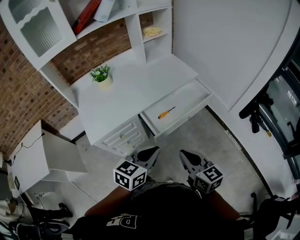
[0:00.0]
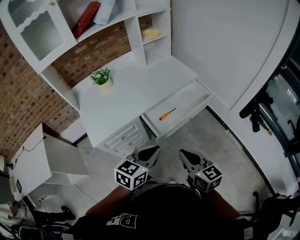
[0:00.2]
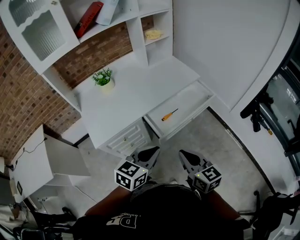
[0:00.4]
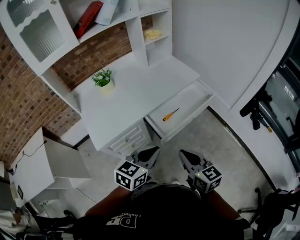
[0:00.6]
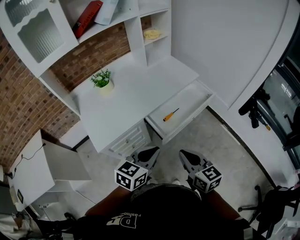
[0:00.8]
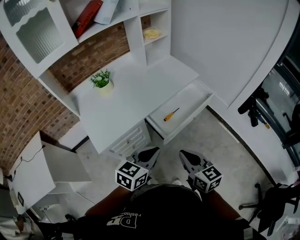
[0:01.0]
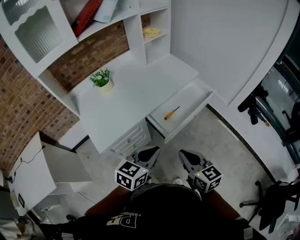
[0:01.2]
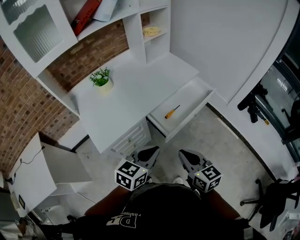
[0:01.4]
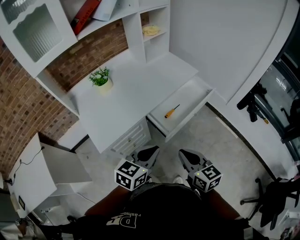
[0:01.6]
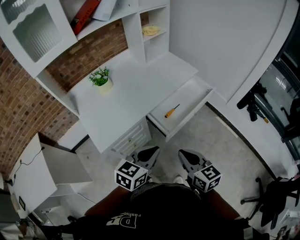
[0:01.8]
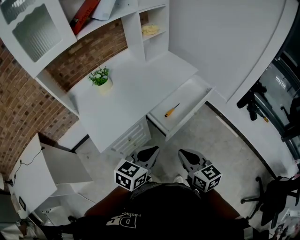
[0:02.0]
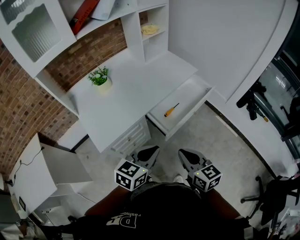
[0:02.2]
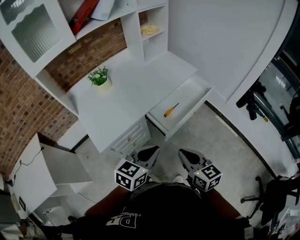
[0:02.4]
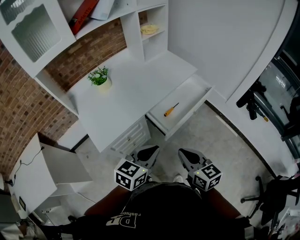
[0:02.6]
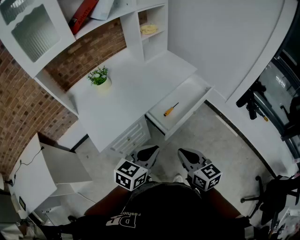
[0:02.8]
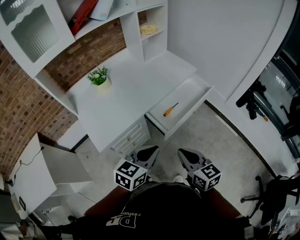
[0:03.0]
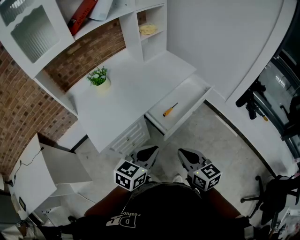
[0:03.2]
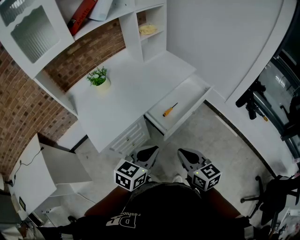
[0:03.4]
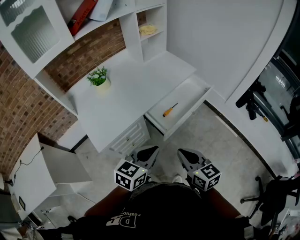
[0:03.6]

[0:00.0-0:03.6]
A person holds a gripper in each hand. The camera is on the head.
0:00.0 to 0:01.8: The grippers both shift to the left by roughly 10 cm.
0:01.8 to 0:03.6: The two grippers keep their place.

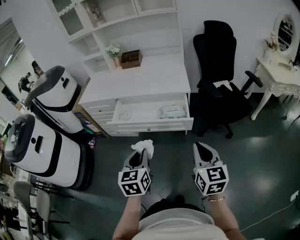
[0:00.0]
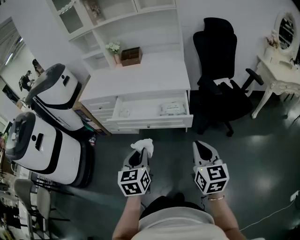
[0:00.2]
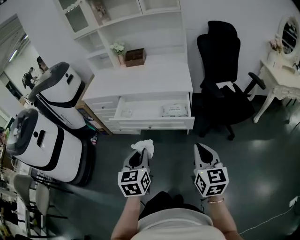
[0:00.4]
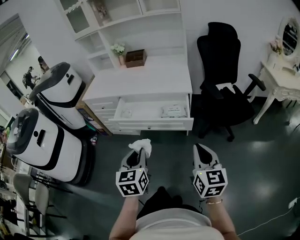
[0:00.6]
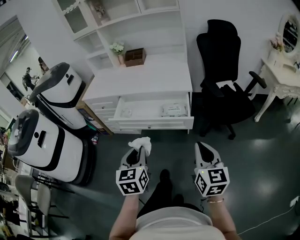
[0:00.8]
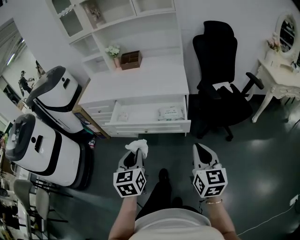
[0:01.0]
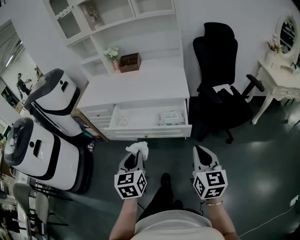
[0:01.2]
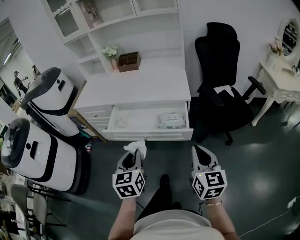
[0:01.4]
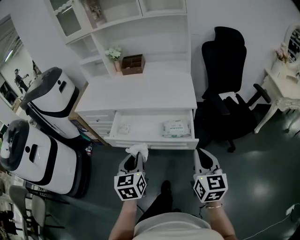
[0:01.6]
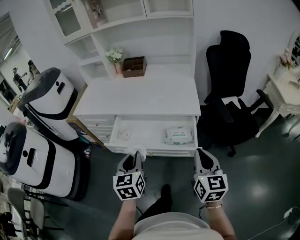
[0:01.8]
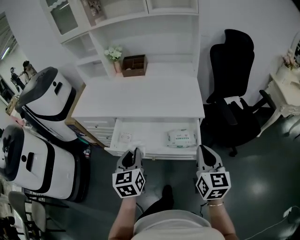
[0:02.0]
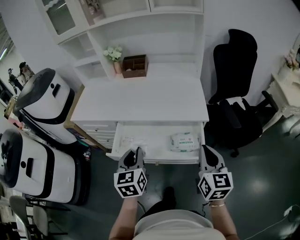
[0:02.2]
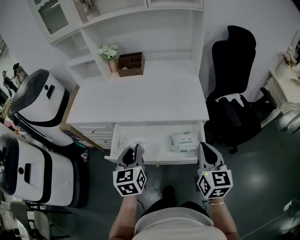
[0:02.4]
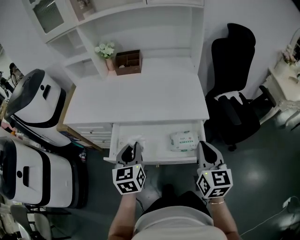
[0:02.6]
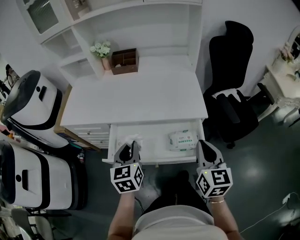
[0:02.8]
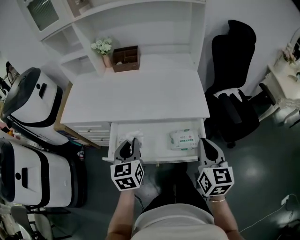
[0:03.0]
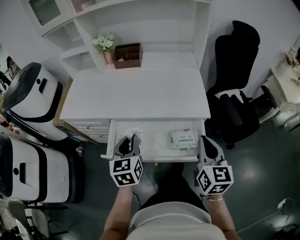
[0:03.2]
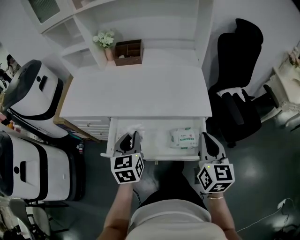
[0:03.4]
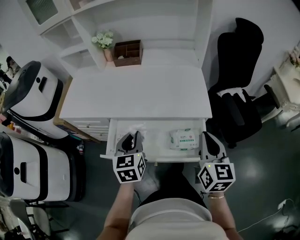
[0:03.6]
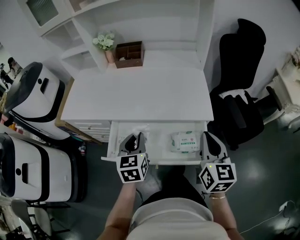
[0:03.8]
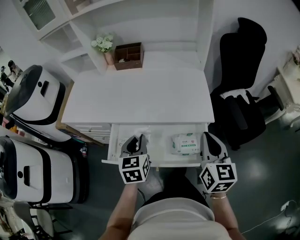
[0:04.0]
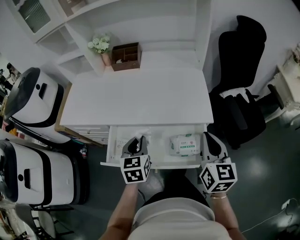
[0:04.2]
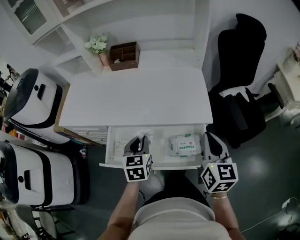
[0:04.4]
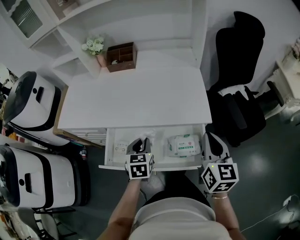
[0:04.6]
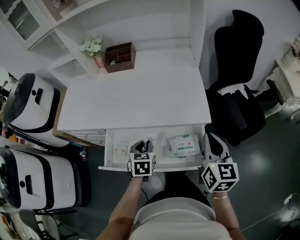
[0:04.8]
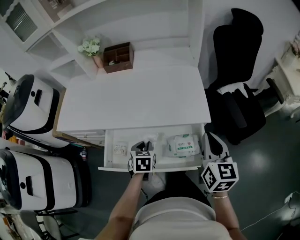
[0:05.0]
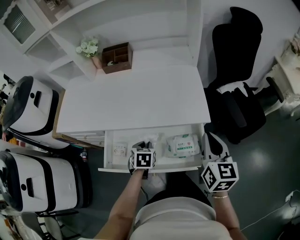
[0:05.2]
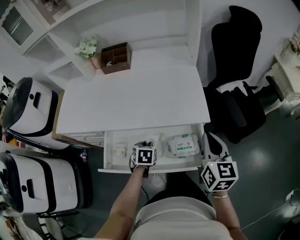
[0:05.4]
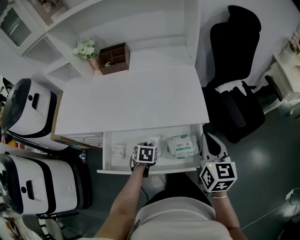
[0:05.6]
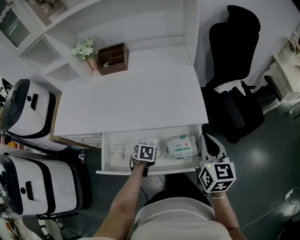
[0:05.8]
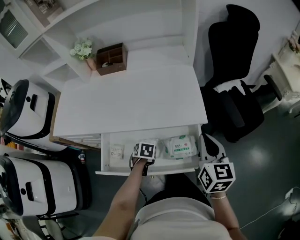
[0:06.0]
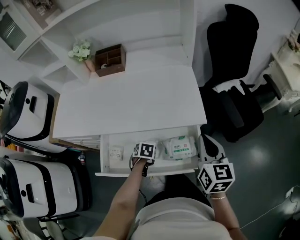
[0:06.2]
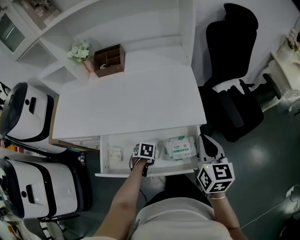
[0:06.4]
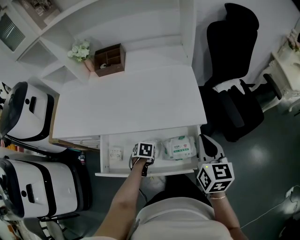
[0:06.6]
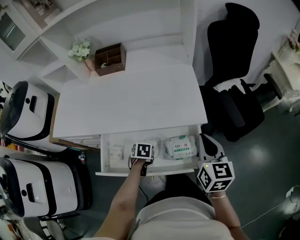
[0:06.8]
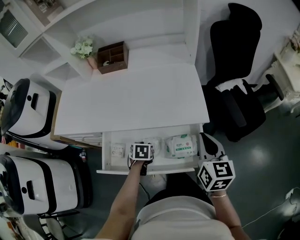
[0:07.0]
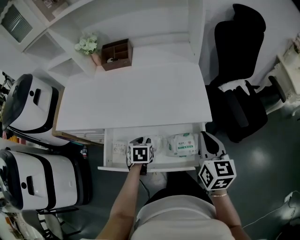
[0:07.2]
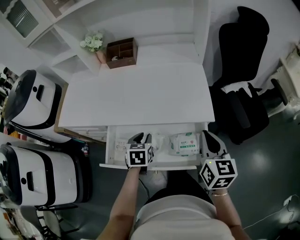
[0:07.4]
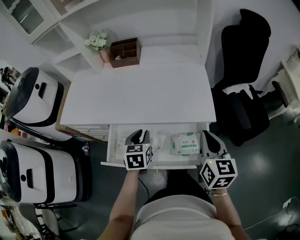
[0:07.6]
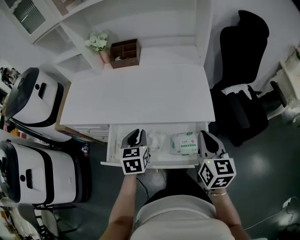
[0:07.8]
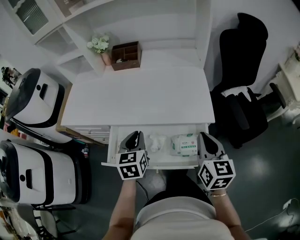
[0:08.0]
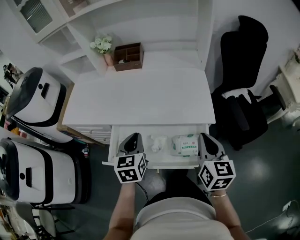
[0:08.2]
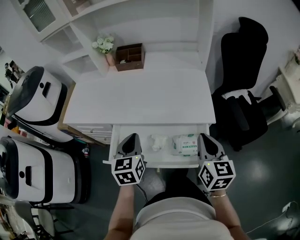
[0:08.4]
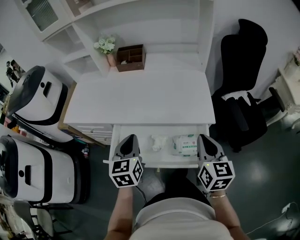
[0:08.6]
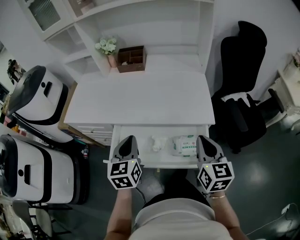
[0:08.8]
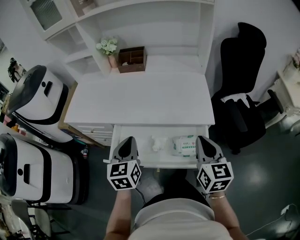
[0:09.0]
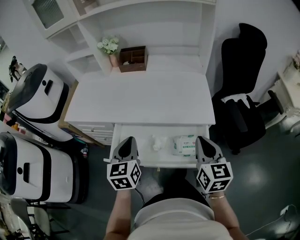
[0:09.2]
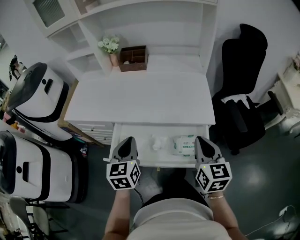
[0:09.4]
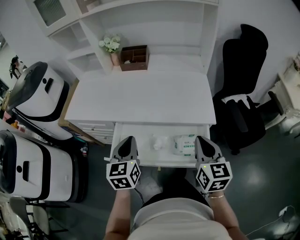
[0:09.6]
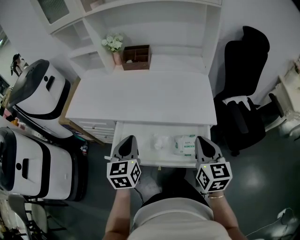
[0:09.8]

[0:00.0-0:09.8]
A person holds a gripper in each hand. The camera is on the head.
0:00.0 to 0:01.4: The grippers both shift forward by about 5 cm.
0:01.4 to 0:02.8: Both grippers travel together forward, about 25 cm.
0:02.8 to 0:04.2: The right gripper heads forward, covering roughly 10 cm. Meanwhile the left gripper is displaced forward and downward by about 10 cm.
0:04.2 to 0:05.6: The left gripper shifts roughly 20 cm downward, and points its fingers about 30 degrees further downward.
0:05.6 to 0:07.0: The grippers make only small movements.
0:07.0 to 0:08.4: The right gripper moves some 5 cm; the left gripper goes roughly 25 cm upward, angles its fingers upward, by about 40 degrees, and closes up.
0:08.4 to 0:09.8: The left gripper shifts by roughly 5 cm.

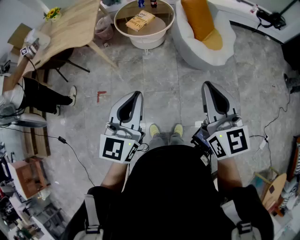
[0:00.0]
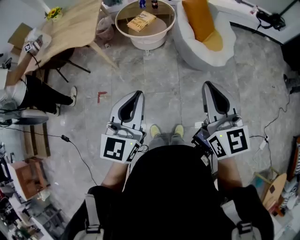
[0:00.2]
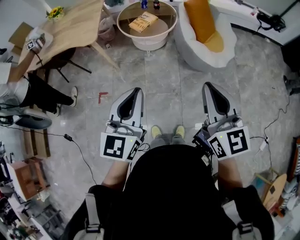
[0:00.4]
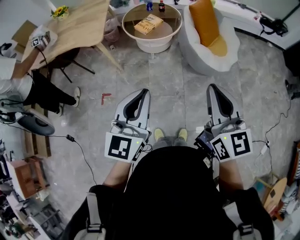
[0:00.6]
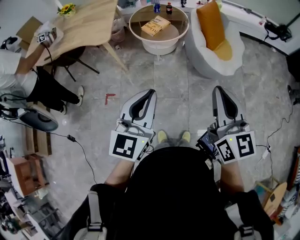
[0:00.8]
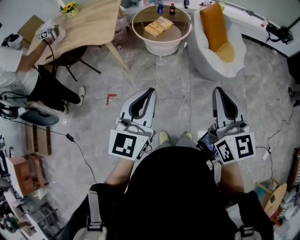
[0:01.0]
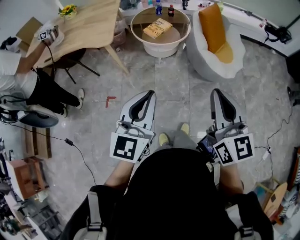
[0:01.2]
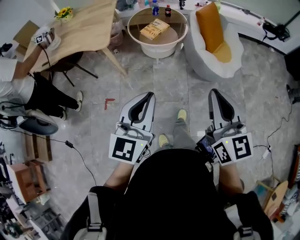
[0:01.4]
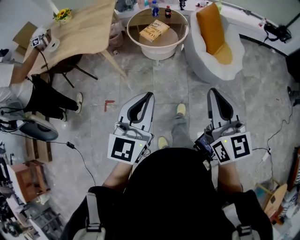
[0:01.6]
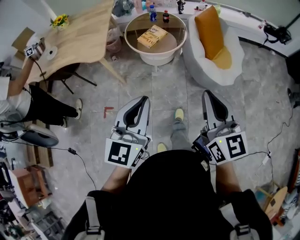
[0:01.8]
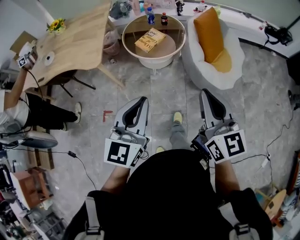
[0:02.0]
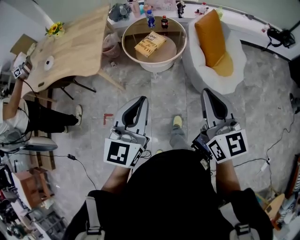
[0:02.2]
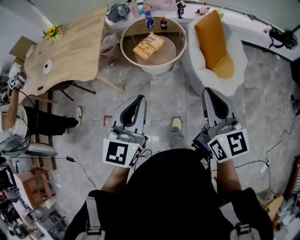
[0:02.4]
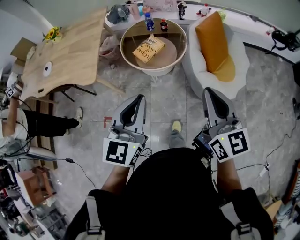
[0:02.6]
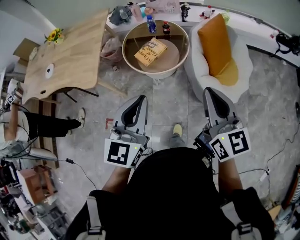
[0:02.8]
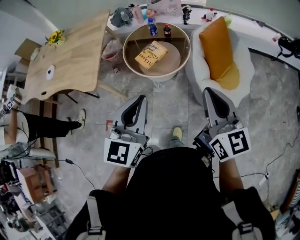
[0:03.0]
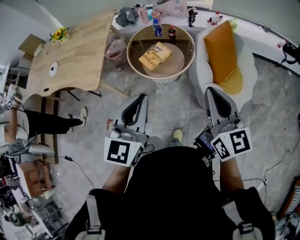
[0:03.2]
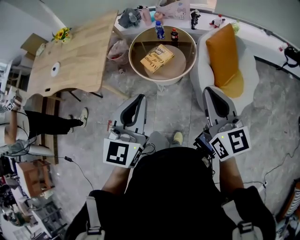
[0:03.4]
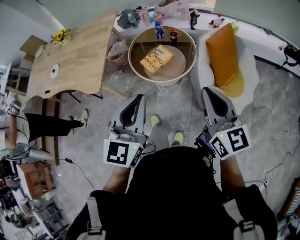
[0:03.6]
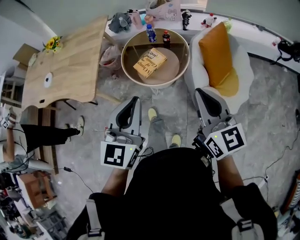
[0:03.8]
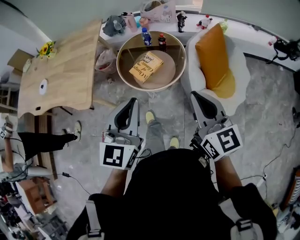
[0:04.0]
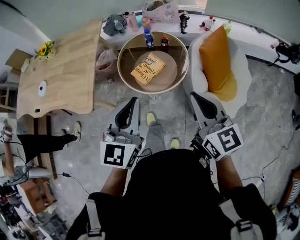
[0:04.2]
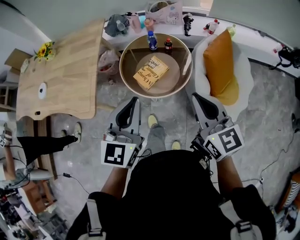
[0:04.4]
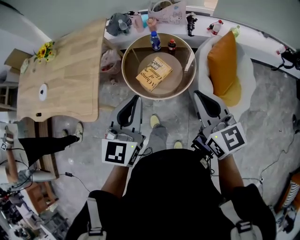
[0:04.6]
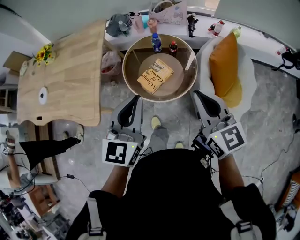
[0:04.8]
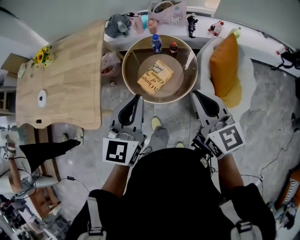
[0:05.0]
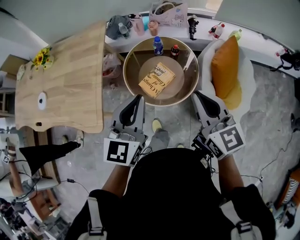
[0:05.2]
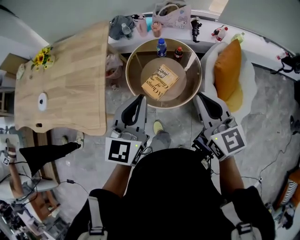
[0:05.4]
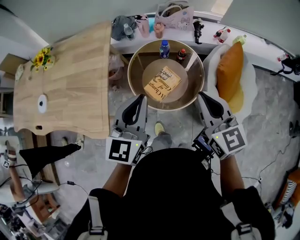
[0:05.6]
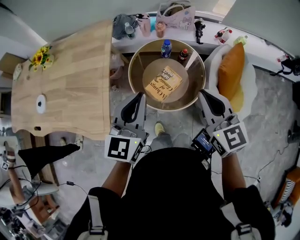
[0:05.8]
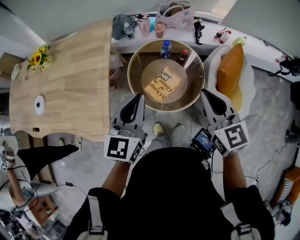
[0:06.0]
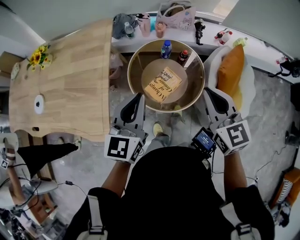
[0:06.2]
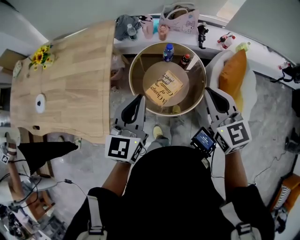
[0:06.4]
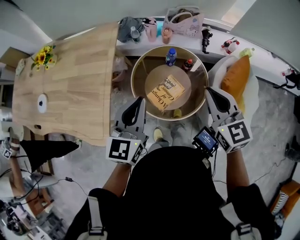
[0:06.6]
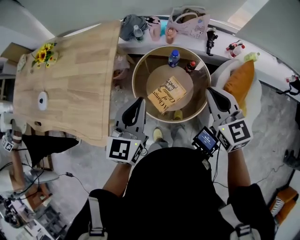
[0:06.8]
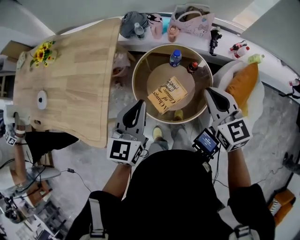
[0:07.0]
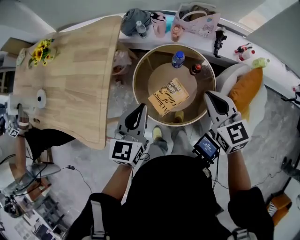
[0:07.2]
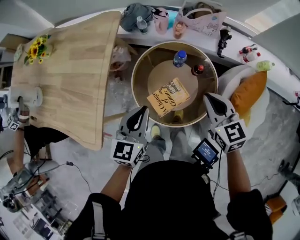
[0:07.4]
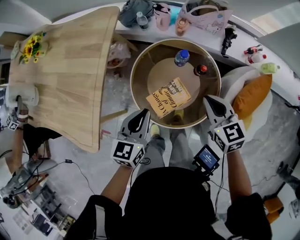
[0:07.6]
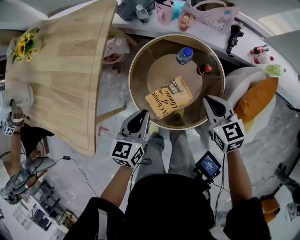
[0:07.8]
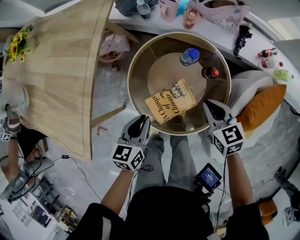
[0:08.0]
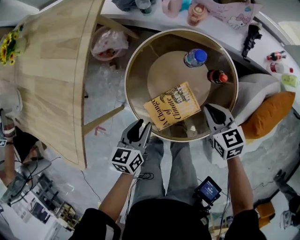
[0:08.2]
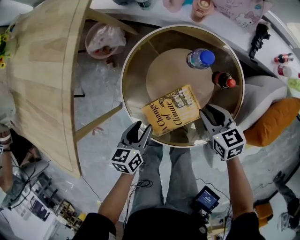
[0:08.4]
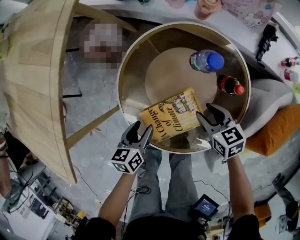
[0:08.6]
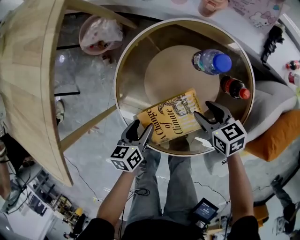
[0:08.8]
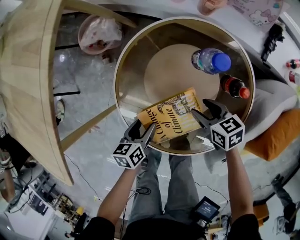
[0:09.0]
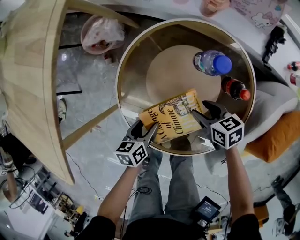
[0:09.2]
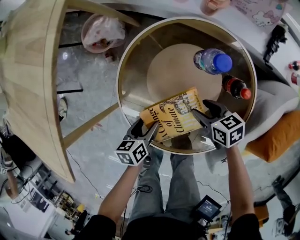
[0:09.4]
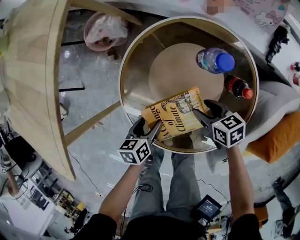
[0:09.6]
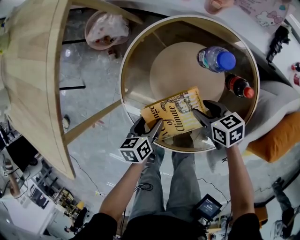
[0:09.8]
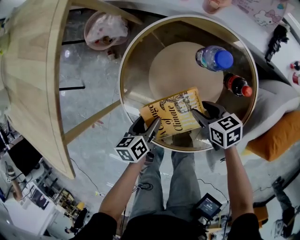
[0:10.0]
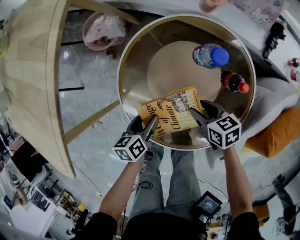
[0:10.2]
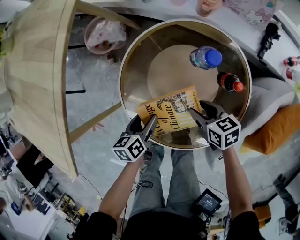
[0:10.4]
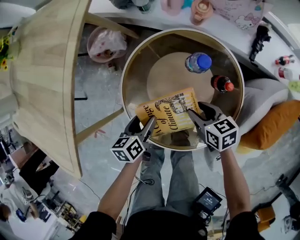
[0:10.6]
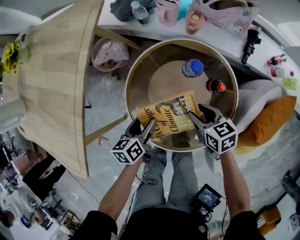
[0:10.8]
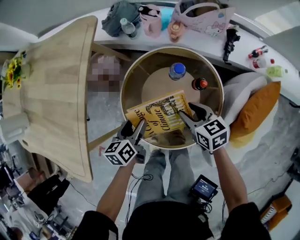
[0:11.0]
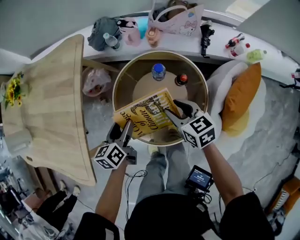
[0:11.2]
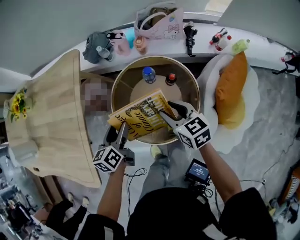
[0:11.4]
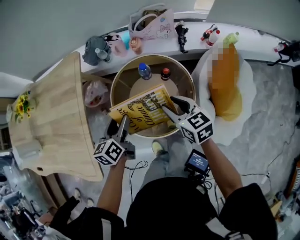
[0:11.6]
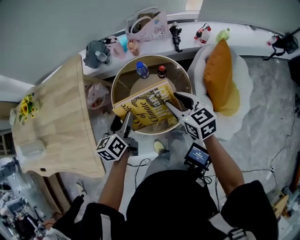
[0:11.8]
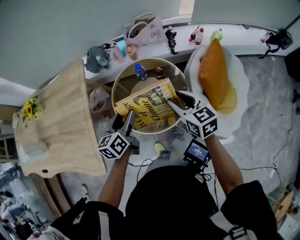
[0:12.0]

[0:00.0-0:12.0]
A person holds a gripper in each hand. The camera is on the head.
0:00.0 to 0:01.6: Both grippers move to the left and forward, roughly 10 cm.
0:01.6 to 0:03.0: The two grippers go about 30 cm forward.
0:03.0 to 0:04.4: Both grippers move forward, about 20 cm.
0:04.4 to 0:06.0: The grippers both shift forward and to the left by approximately 20 cm.
0:06.0 to 0:07.6: The two grippers go roughly 25 cm downward and forward. The left gripper changes its angle by about 20 degrees. Meanwhile the right gripper turns by about 30 degrees.
0:07.6 to 0:09.0: The grippers both shift downward by roughly 35 cm. The left gripper rotates some 40 degrees, and opens; the right gripper turns by some 30 degrees, and opens.
0:09.0 to 0:10.4: The grippers stay close to where they were, moving slightly.
0:10.4 to 0:12.0: Both grippers travel together upward, some 40 cm. The left gripper changes its angle by roughly 40 degrees; the right gripper turns by roughly 50 degrees.
